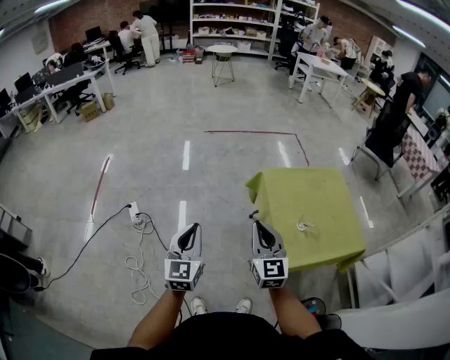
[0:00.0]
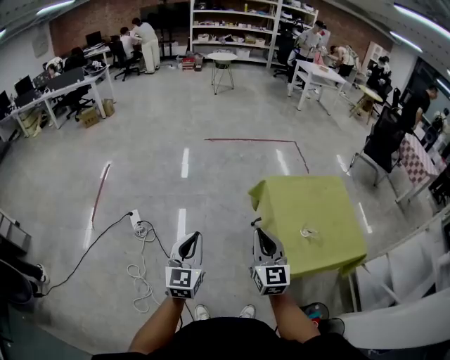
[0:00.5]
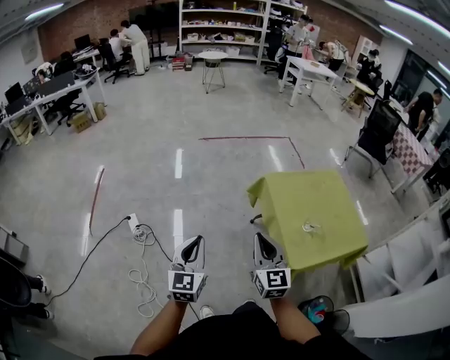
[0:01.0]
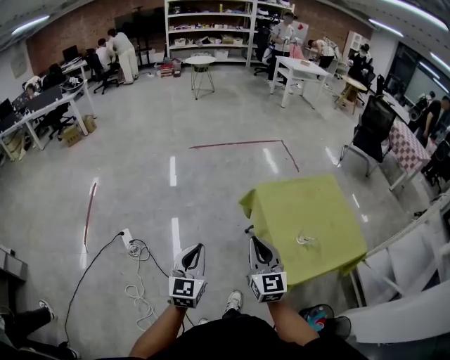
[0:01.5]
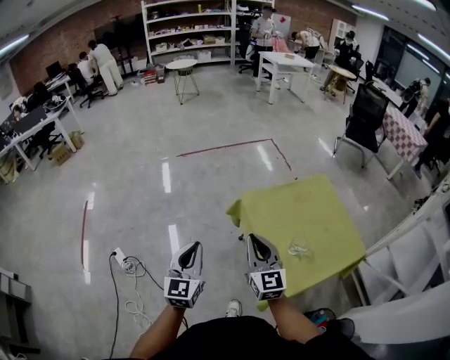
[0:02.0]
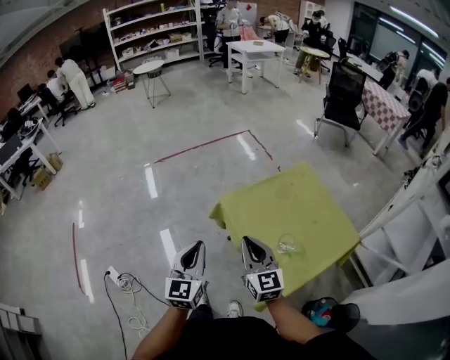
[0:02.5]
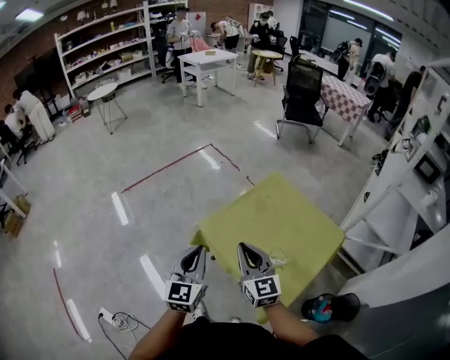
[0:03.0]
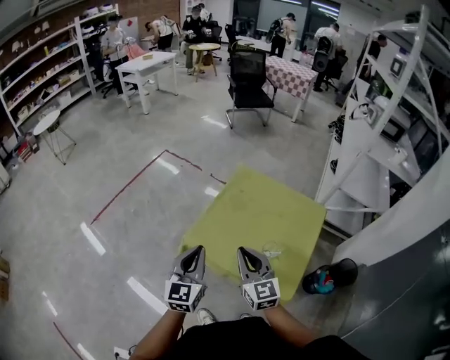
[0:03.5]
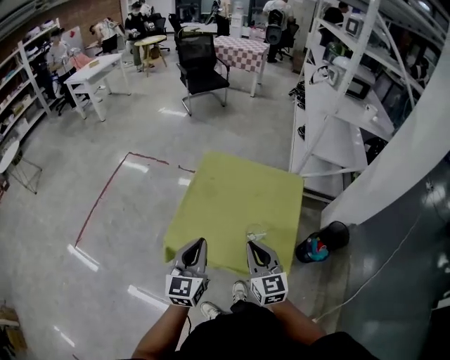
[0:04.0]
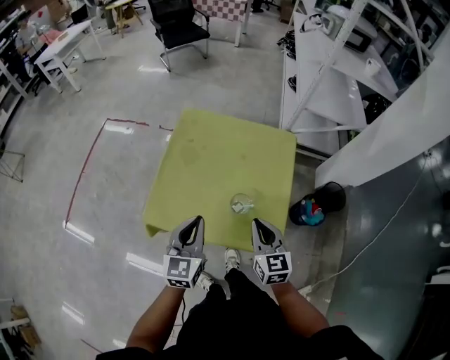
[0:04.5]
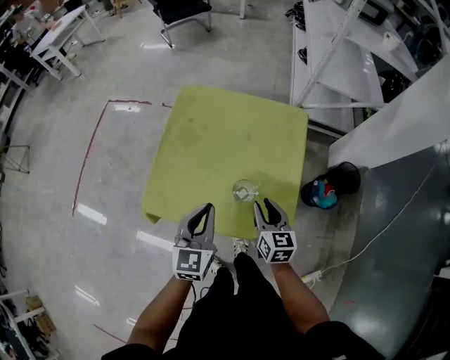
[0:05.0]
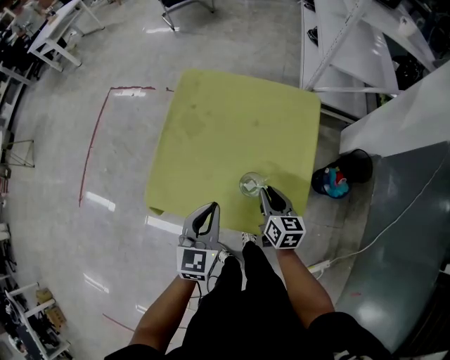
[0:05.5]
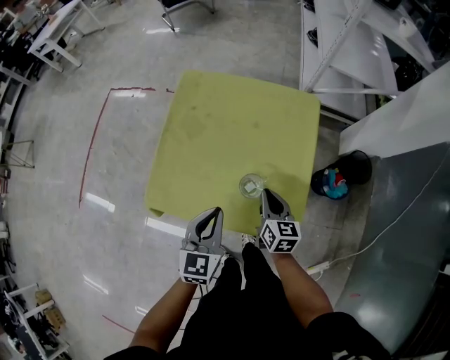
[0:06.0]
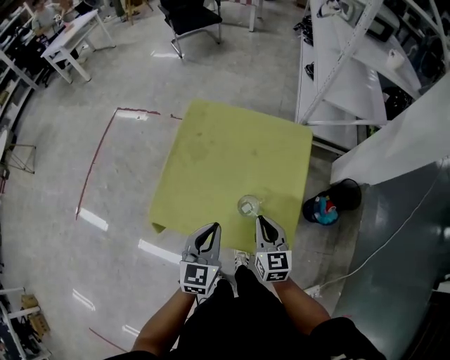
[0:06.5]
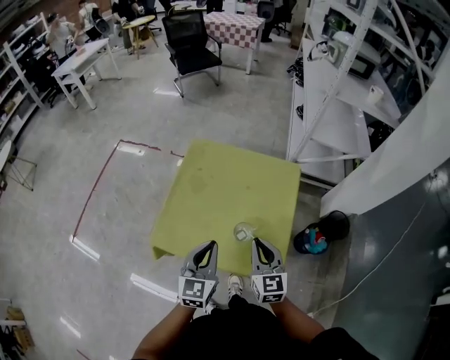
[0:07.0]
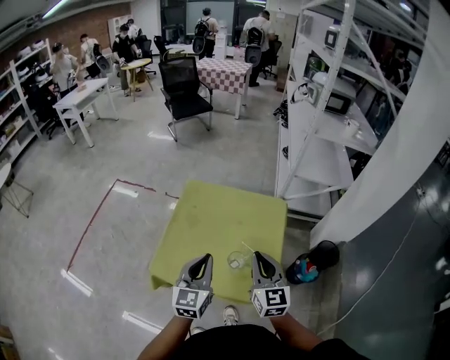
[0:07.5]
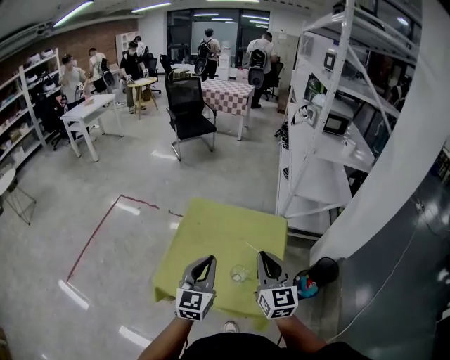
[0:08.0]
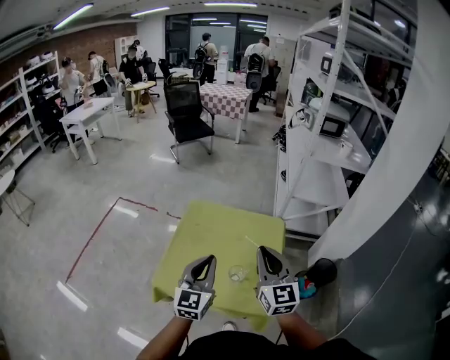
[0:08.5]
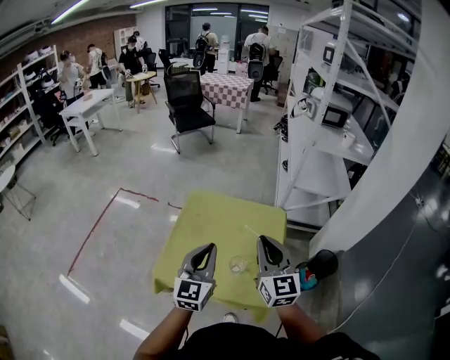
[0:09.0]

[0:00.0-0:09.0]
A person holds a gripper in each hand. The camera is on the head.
0:00.0 to 0:02.0: The grippers both shift forward by approximately 15 cm.
0:02.0 to 0:04.5: The right gripper changes place by about 30 cm, and changes its angle by about 60 degrees. Meanwhile the left gripper ends up about 40 cm from where it was, and swivels roughly 60 degrees.
0:04.5 to 0:07.0: The left gripper moves approximately 10 cm downward and comes back, while the right gripper travels downward and back again, some 15 cm each way, and opens, then closes once more.
0:07.0 to 0:09.0: Both grippers travel together upward, approximately 20 cm.

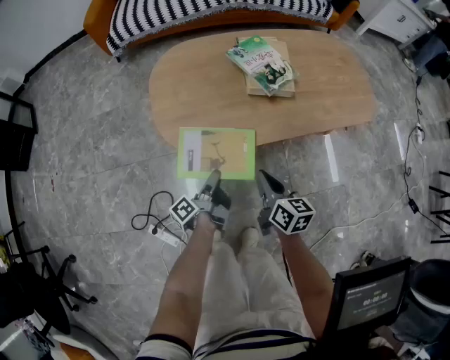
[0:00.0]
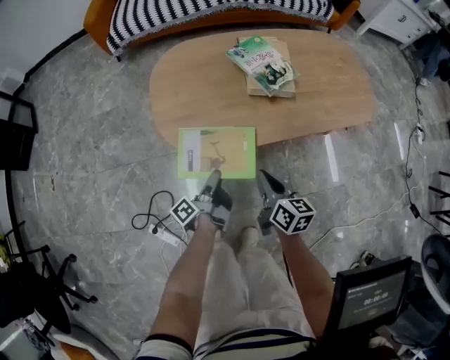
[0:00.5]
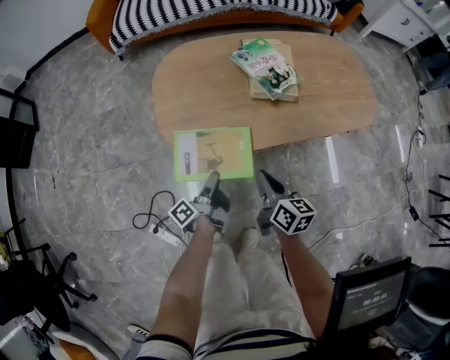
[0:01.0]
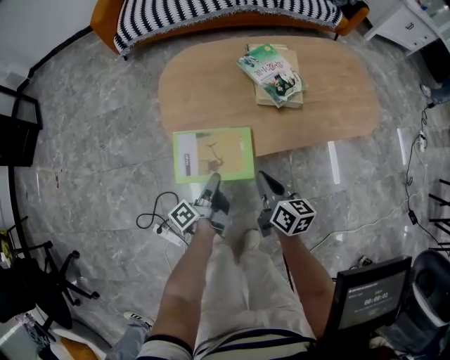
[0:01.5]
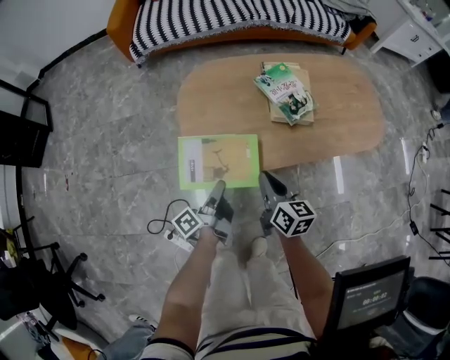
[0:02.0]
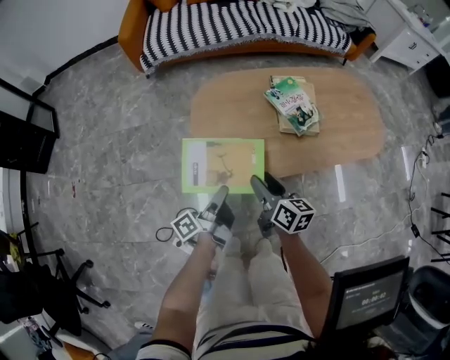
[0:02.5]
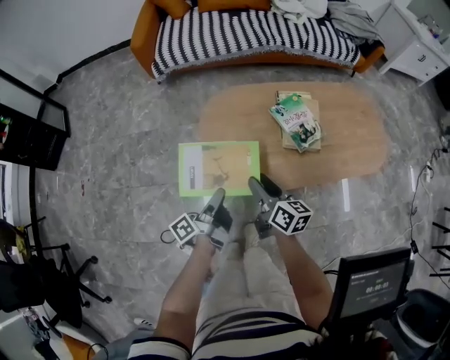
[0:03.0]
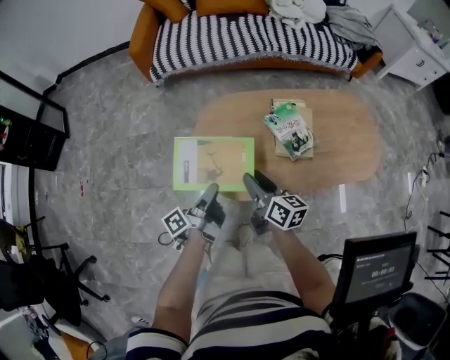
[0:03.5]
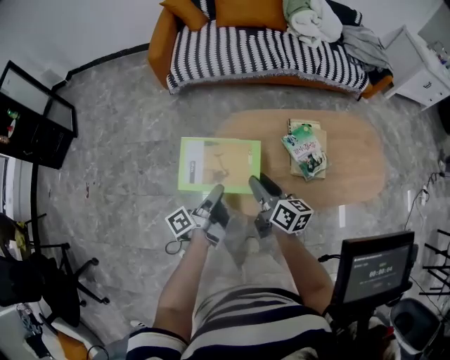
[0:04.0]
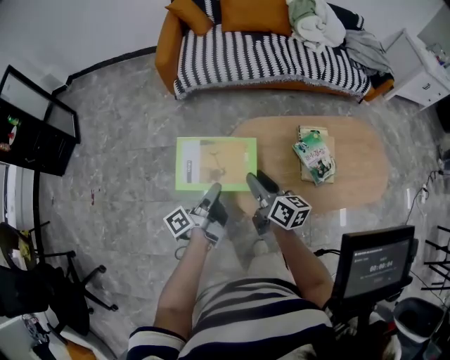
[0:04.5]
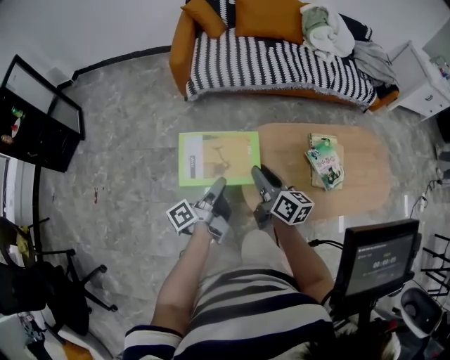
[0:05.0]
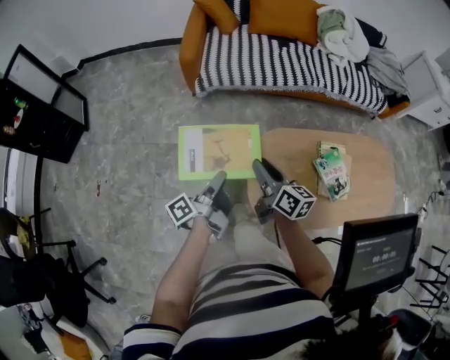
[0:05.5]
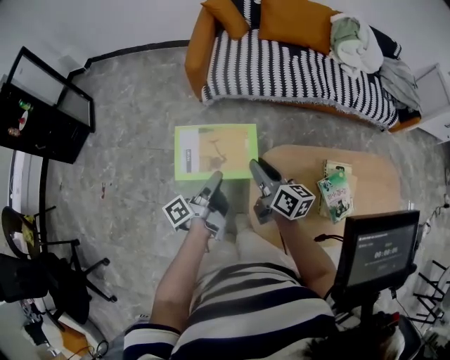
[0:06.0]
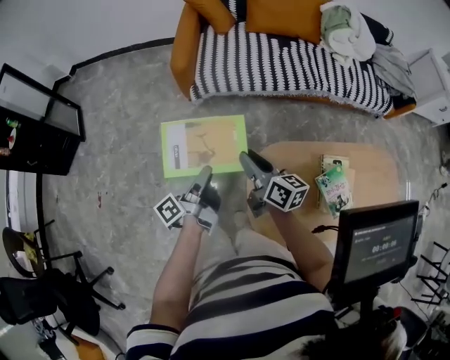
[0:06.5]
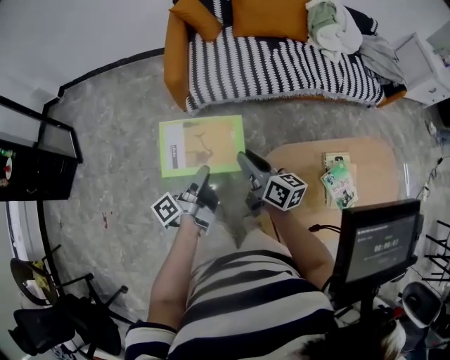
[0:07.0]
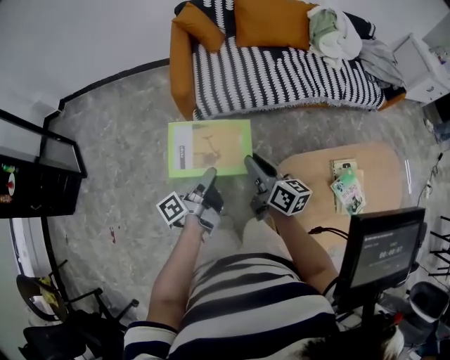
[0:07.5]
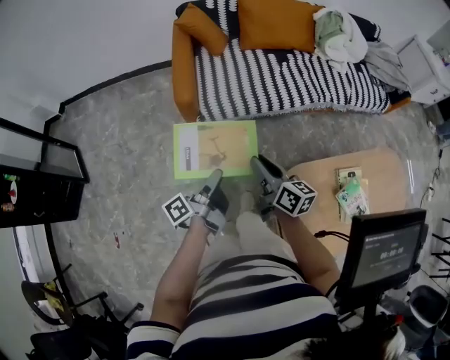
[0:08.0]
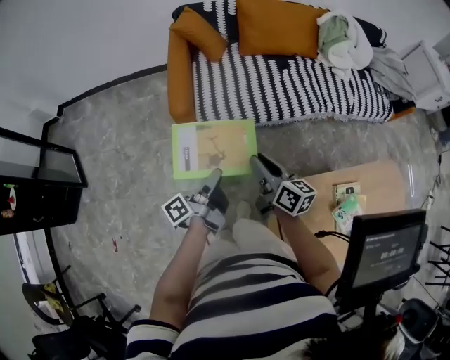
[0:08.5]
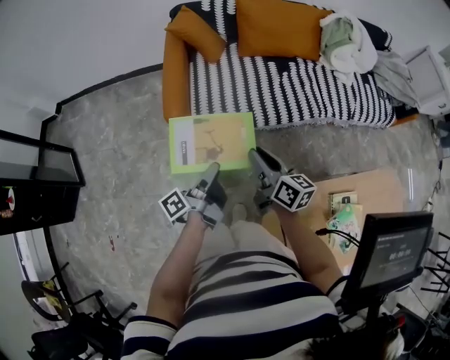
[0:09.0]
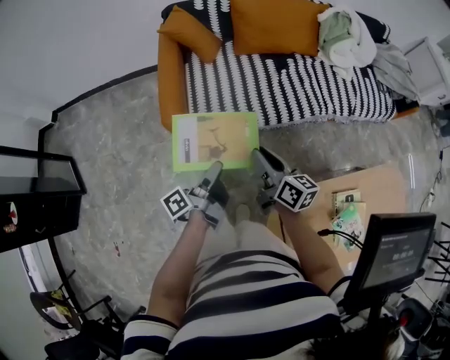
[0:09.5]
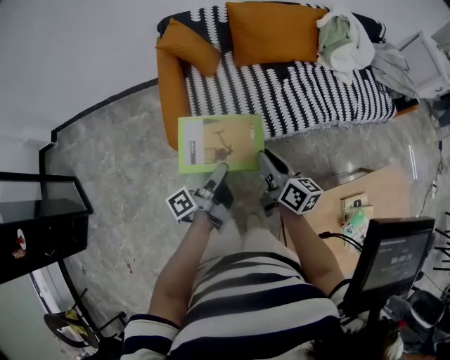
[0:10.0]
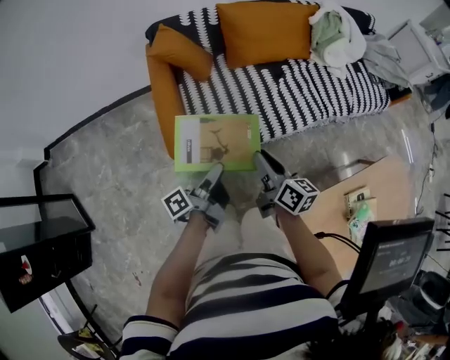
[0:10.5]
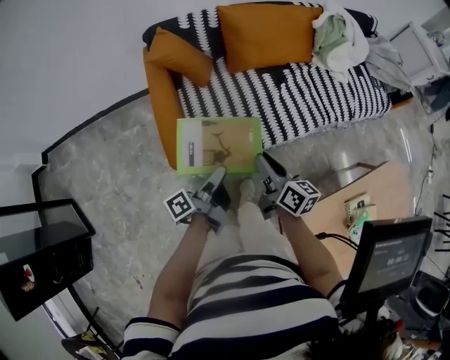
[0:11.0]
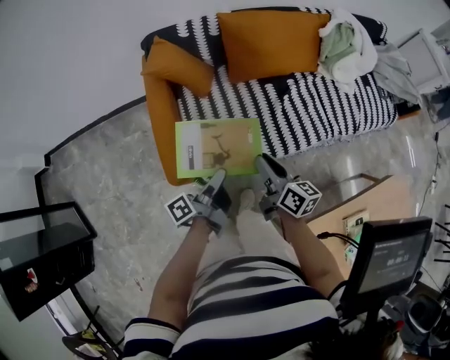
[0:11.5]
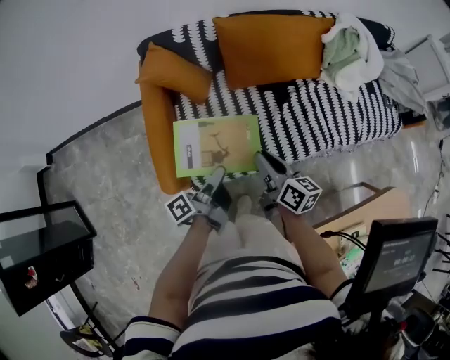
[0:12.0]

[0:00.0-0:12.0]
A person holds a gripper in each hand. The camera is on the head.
0:00.0 to 0:02.0: The right gripper moves some 10 cm.
0:02.0 to 0:04.0: The right gripper moves about 20 cm, and opens its fingers.
0:04.0 to 0:06.0: The right gripper ends up roughly 25 cm from where it was.
0:06.0 to 0:08.0: The right gripper shifts by roughly 15 cm.
0:08.0 to 0:10.0: The right gripper changes place by roughly 20 cm.
0:10.0 to 0:12.0: The right gripper moves some 20 cm.

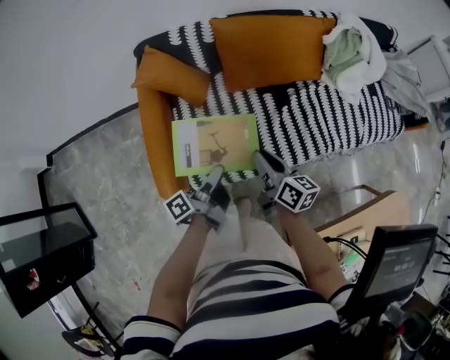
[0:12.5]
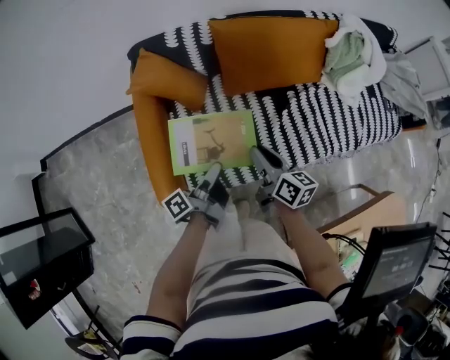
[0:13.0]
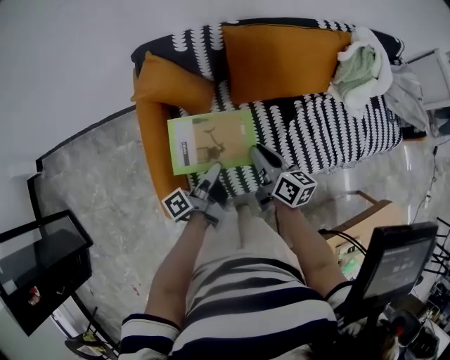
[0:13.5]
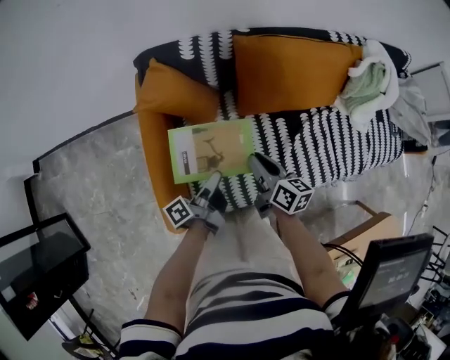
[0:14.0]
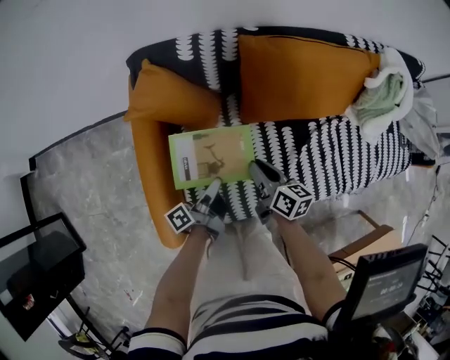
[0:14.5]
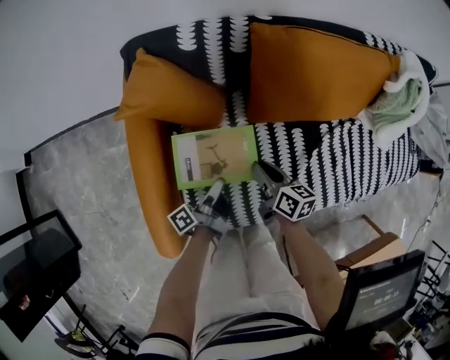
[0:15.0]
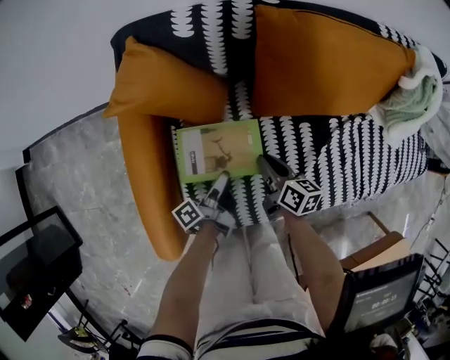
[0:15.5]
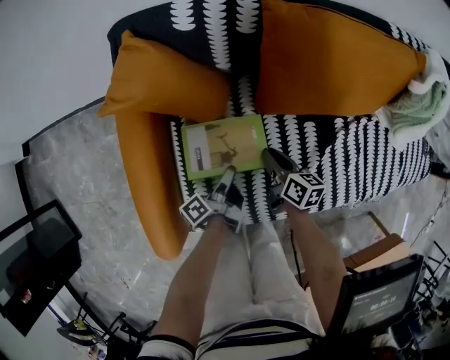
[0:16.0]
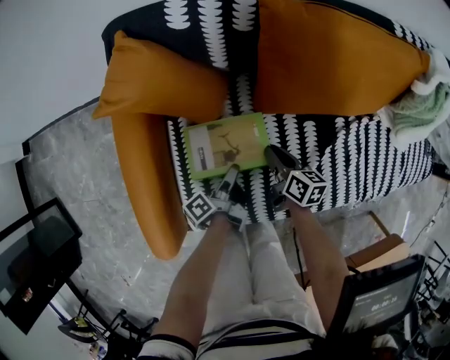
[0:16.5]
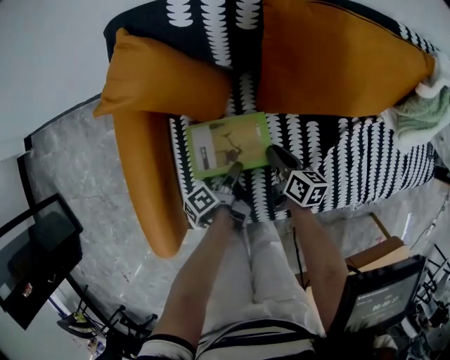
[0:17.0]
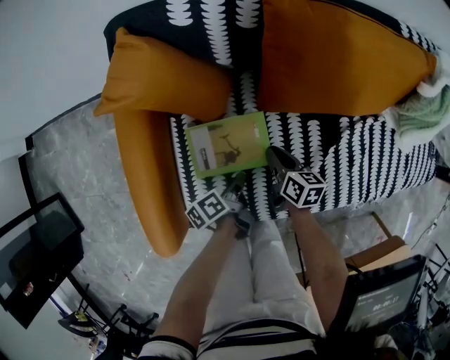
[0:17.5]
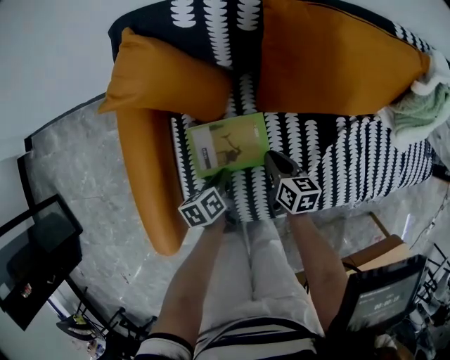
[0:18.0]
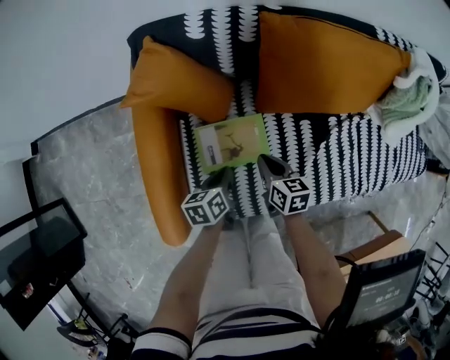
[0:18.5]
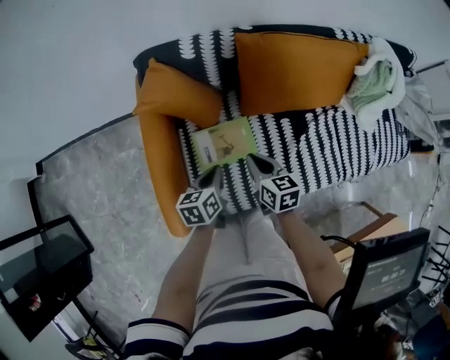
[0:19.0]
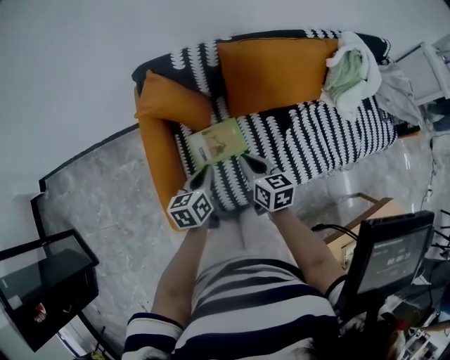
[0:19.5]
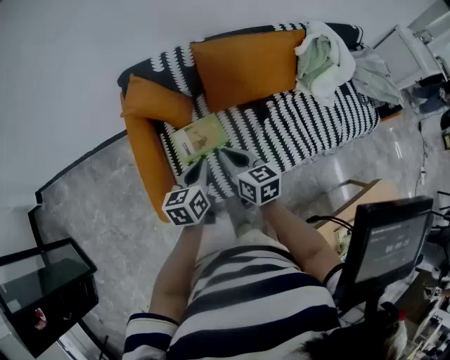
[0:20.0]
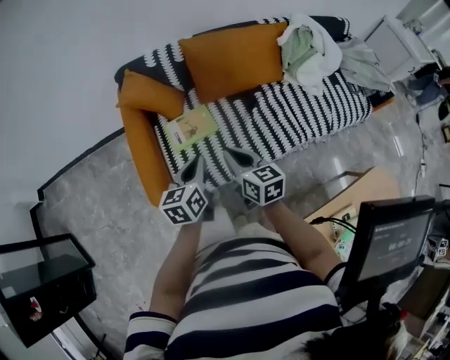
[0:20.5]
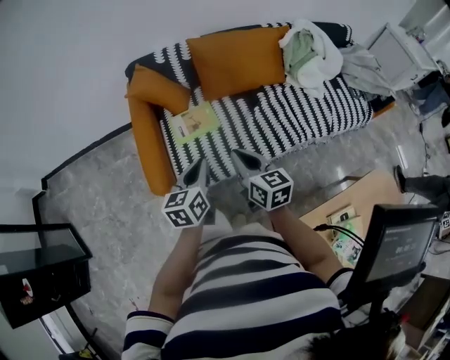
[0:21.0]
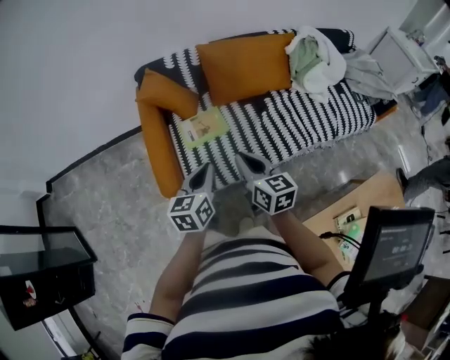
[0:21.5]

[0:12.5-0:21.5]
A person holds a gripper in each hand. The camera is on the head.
0:12.5 to 0:14.5: The right gripper shifts by roughly 20 cm.
0:14.5 to 0:17.0: The right gripper travels downward by some 15 cm.
0:17.0 to 0:19.5: The right gripper shifts roughly 20 cm upward, and rotates approximately 20 degrees.
0:19.5 to 0:21.5: The right gripper changes place by some 25 cm.
